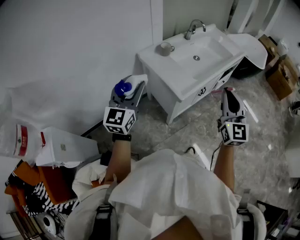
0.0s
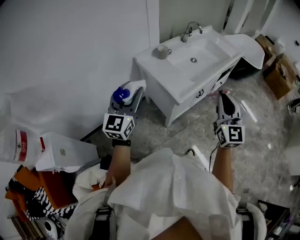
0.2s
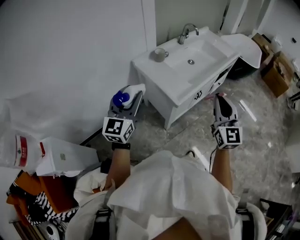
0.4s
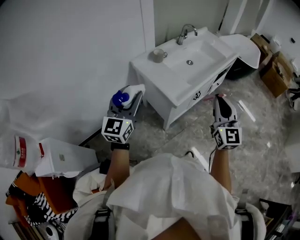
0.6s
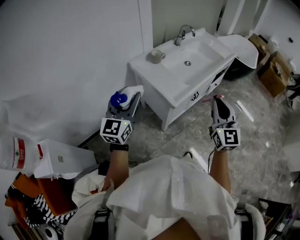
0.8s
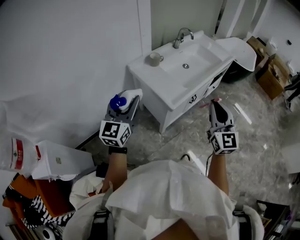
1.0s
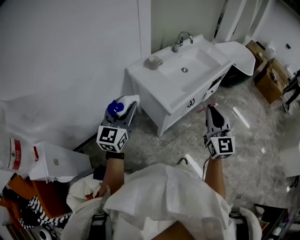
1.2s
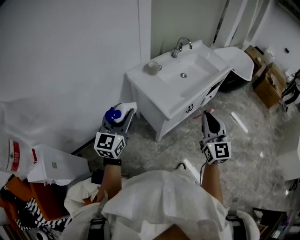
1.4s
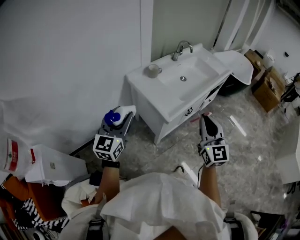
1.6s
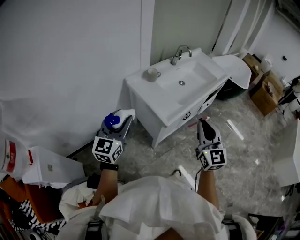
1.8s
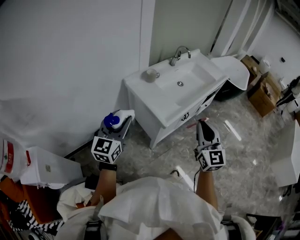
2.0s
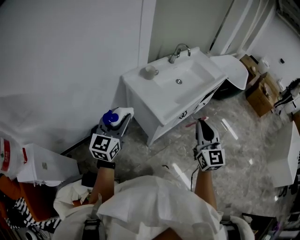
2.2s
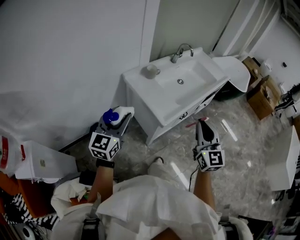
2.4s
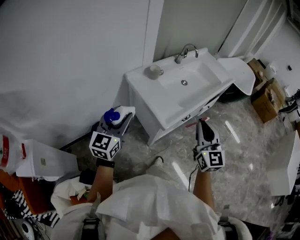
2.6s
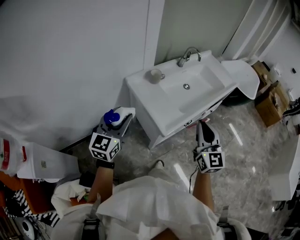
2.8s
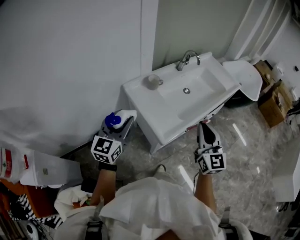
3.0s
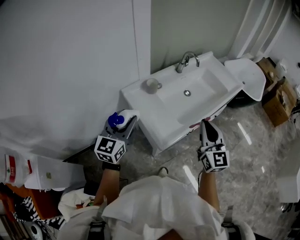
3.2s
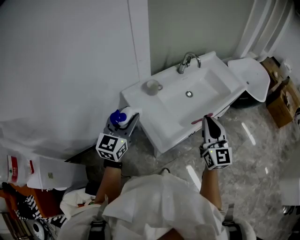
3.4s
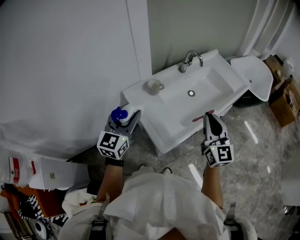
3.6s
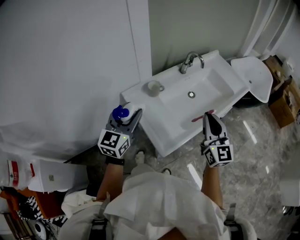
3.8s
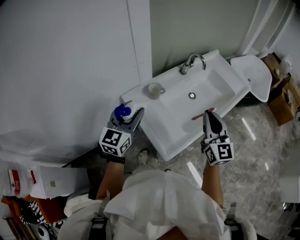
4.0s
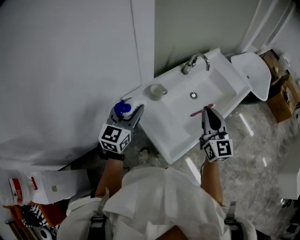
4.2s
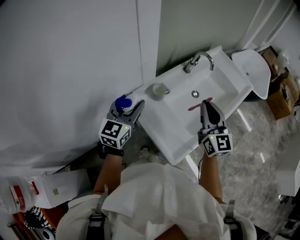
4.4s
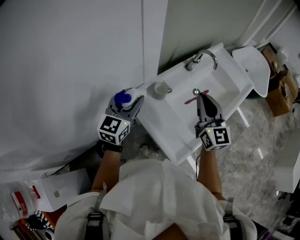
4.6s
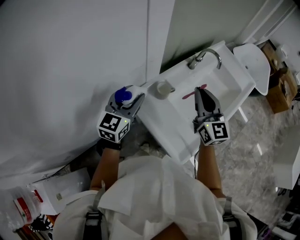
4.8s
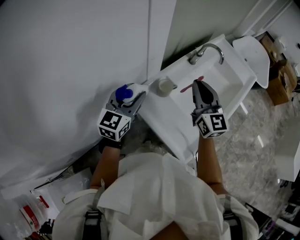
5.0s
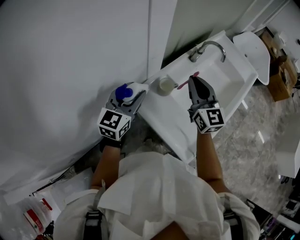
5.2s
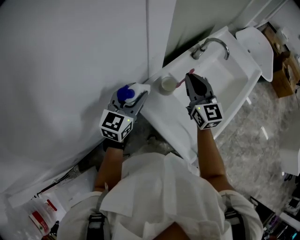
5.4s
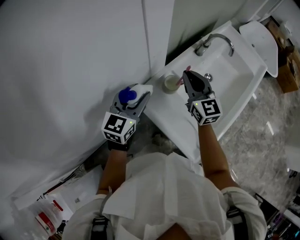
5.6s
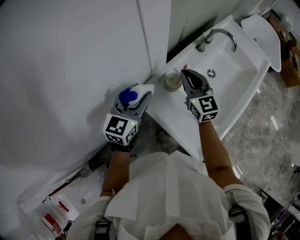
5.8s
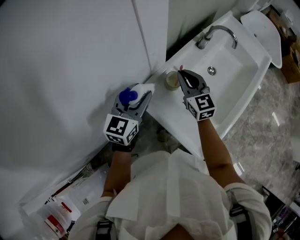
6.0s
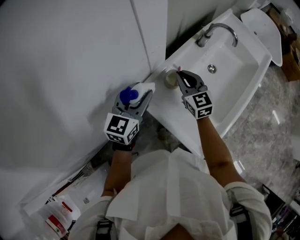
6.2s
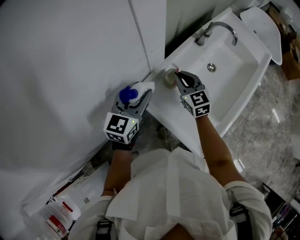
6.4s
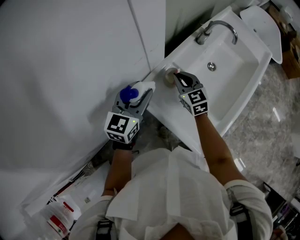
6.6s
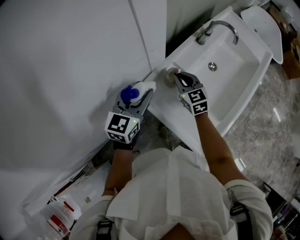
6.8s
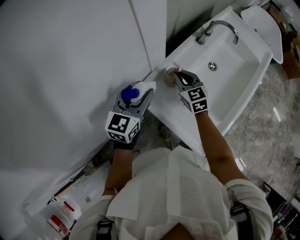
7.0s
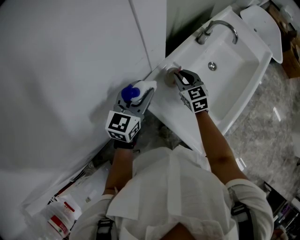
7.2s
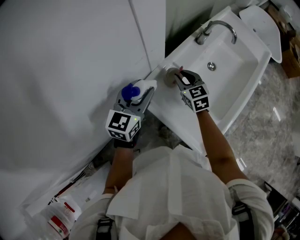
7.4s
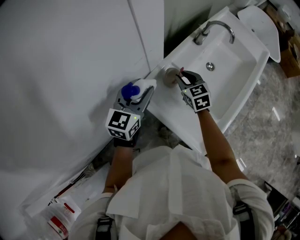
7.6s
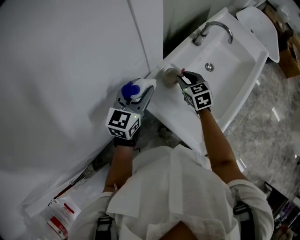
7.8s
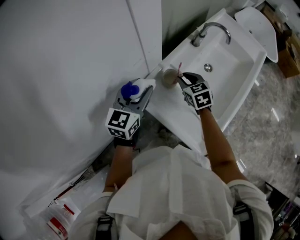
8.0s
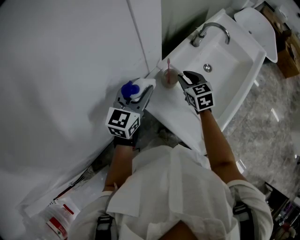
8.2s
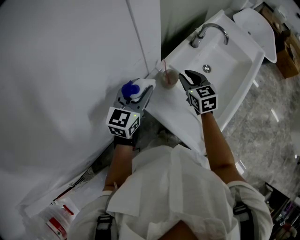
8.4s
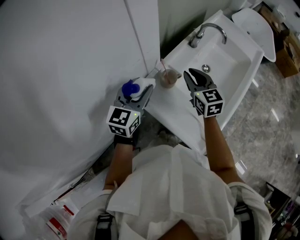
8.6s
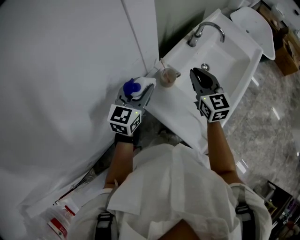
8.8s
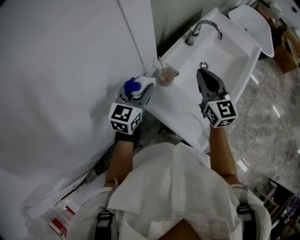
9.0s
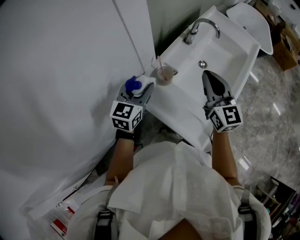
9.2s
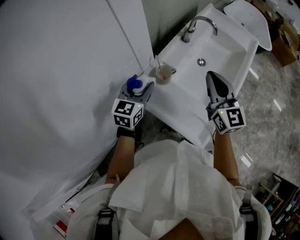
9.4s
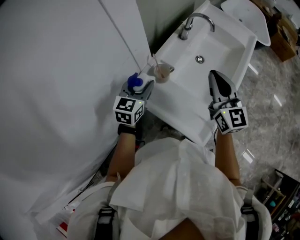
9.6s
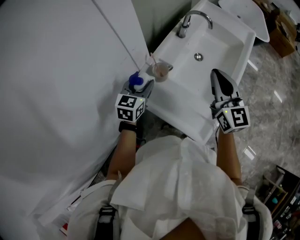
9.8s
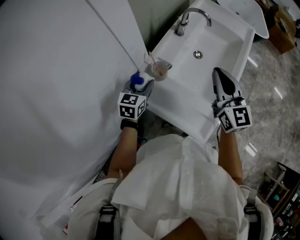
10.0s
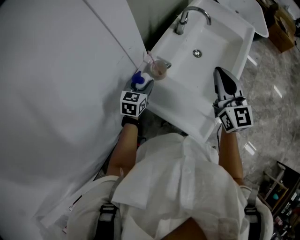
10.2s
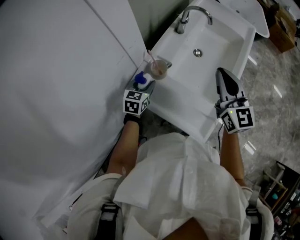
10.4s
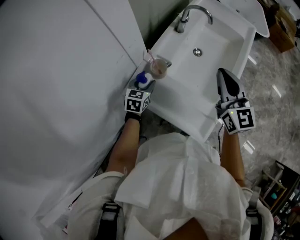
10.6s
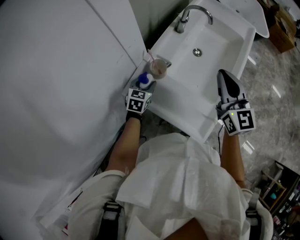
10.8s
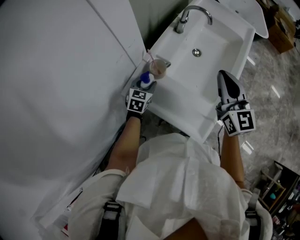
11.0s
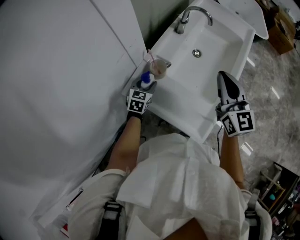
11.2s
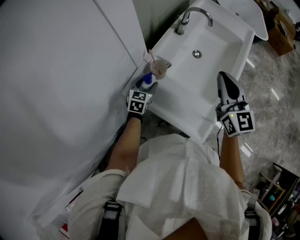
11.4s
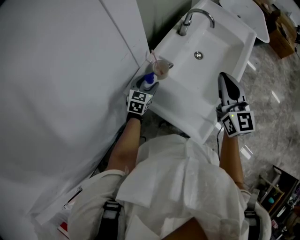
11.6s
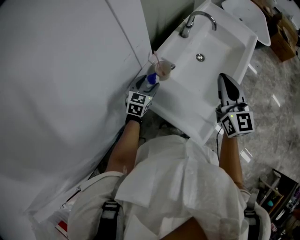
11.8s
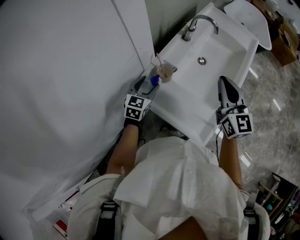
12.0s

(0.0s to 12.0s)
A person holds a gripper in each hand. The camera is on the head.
0.0s - 1.6s: The grippers move only a little.
1.6s - 3.0s: The two grippers go some 15 cm forward.
3.0s - 4.4s: The two grippers go about 25 cm forward.
4.4s - 6.0s: The left gripper travels forward, downward and to the left by roughly 15 cm, while the right gripper goes approximately 30 cm to the left, forward and downward.
6.0s - 7.6s: The right gripper is displaced downward by about 5 cm, and swivels about 20 degrees.
7.6s - 9.0s: The right gripper moves upward and to the right, roughly 20 cm, and rotates some 30 degrees.
9.0s - 10.4s: The left gripper goes about 15 cm downward; the right gripper moves to the right, roughly 10 cm.
10.4s - 12.0s: There are only small adjustments of the grippers.

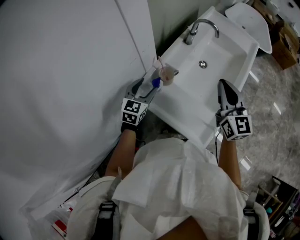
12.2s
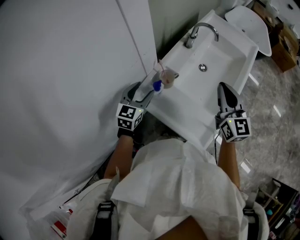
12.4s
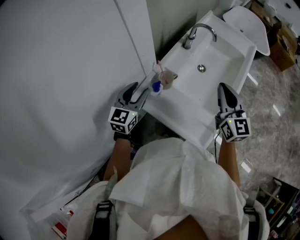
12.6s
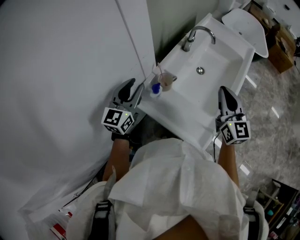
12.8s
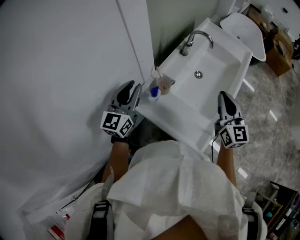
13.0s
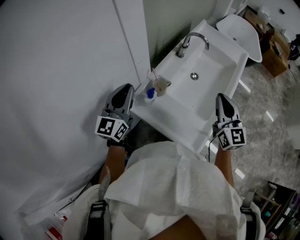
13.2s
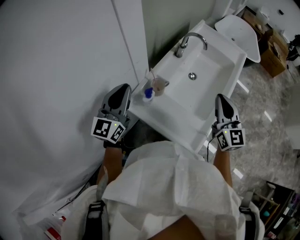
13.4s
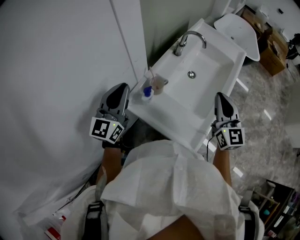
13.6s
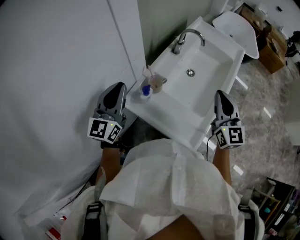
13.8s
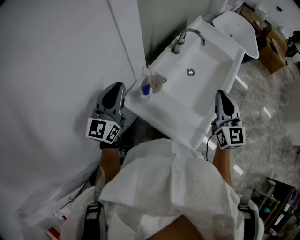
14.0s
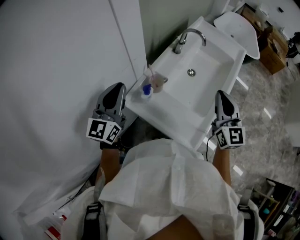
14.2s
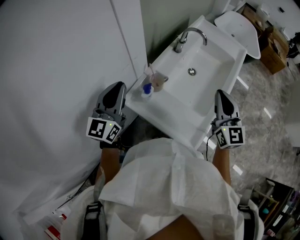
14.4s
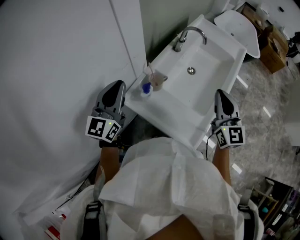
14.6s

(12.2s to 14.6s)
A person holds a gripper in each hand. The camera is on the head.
12.2s - 13.4s: The left gripper moves upward, approximately 20 cm, tips its fingers upward by some 30 degrees, and closes up.
13.4s - 14.6s: The two grippers keep their place.

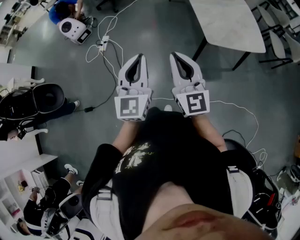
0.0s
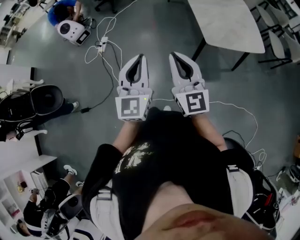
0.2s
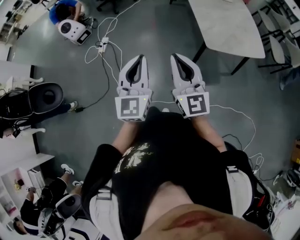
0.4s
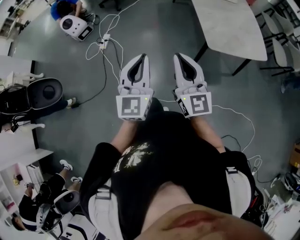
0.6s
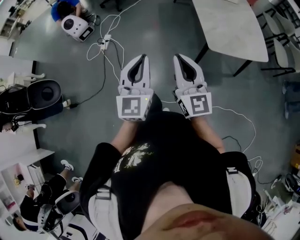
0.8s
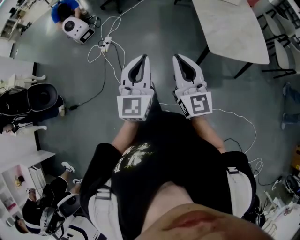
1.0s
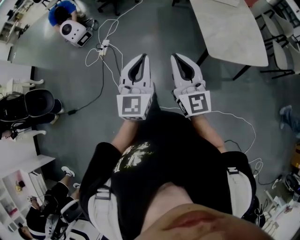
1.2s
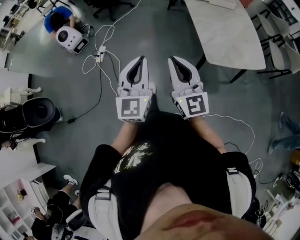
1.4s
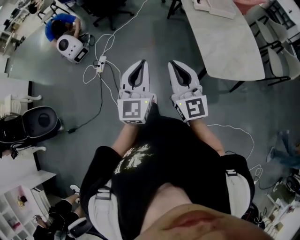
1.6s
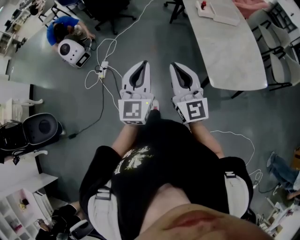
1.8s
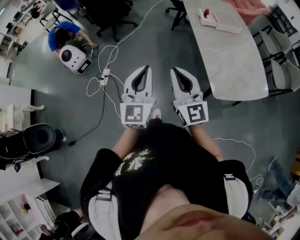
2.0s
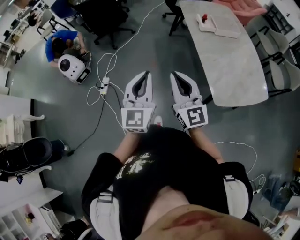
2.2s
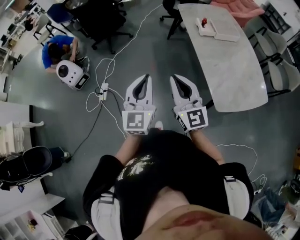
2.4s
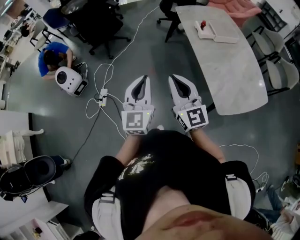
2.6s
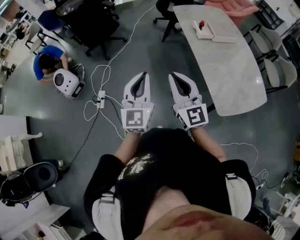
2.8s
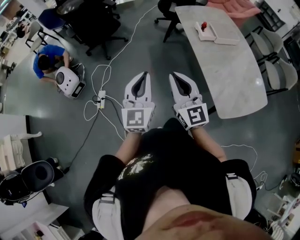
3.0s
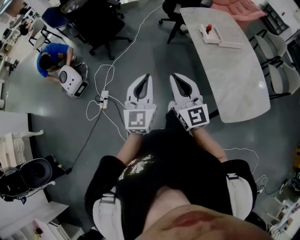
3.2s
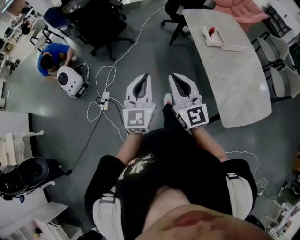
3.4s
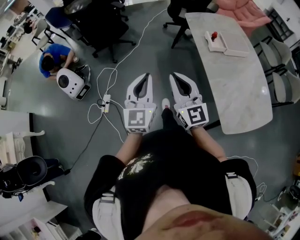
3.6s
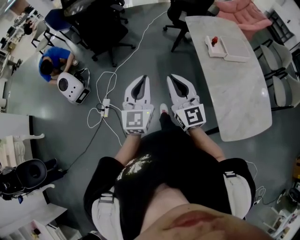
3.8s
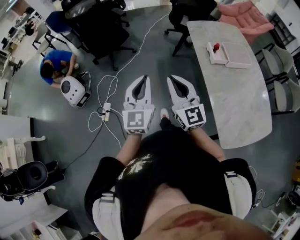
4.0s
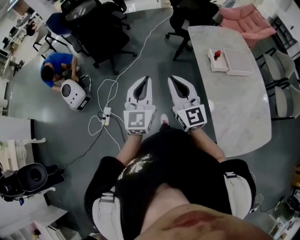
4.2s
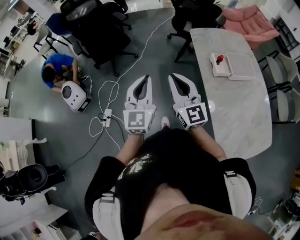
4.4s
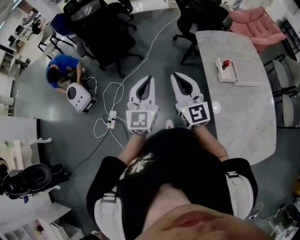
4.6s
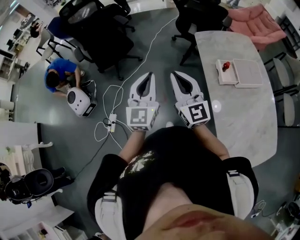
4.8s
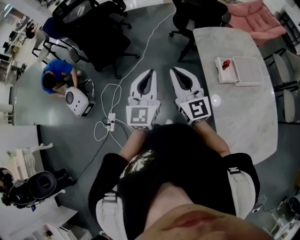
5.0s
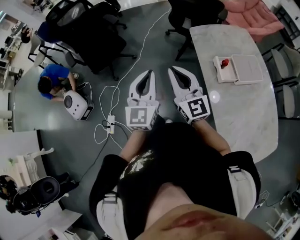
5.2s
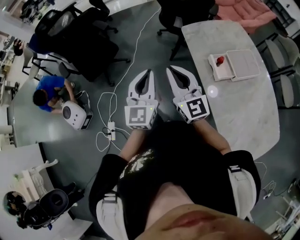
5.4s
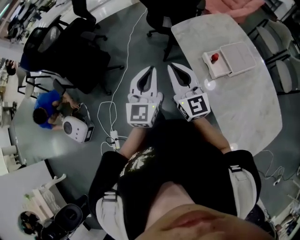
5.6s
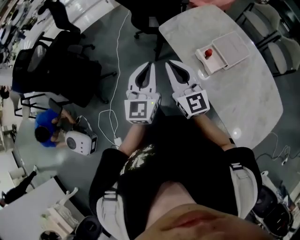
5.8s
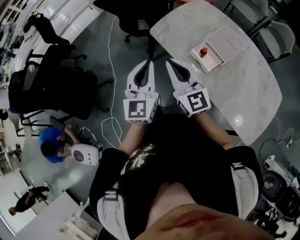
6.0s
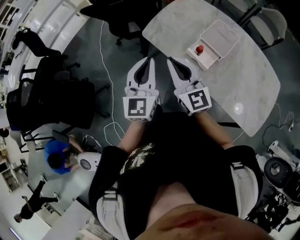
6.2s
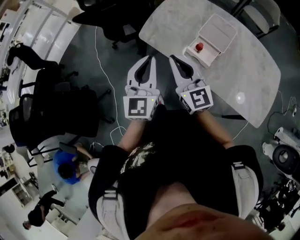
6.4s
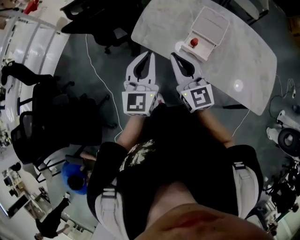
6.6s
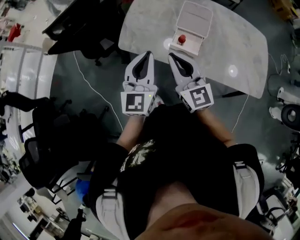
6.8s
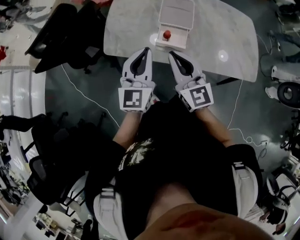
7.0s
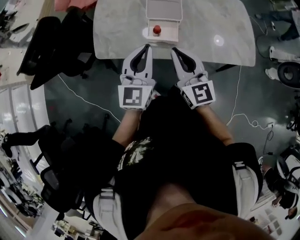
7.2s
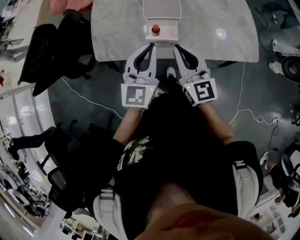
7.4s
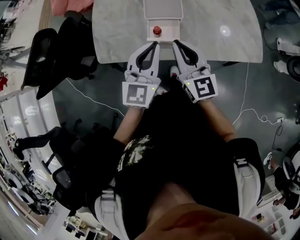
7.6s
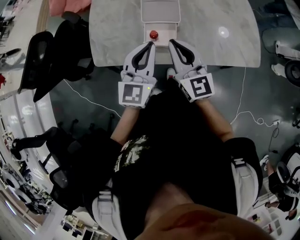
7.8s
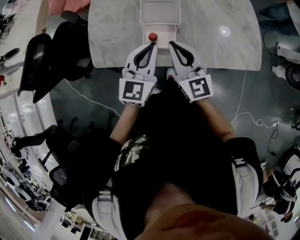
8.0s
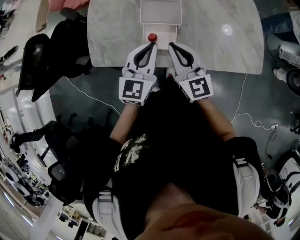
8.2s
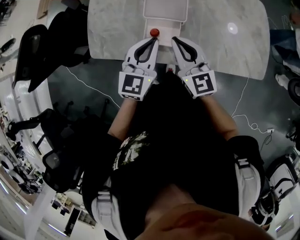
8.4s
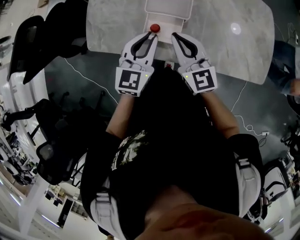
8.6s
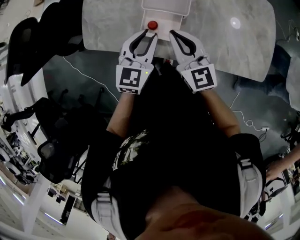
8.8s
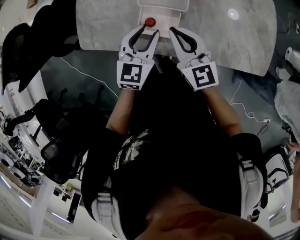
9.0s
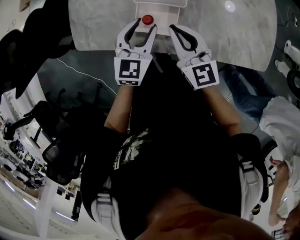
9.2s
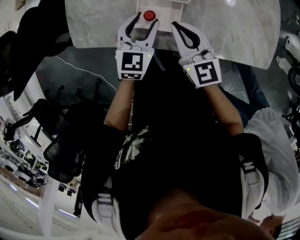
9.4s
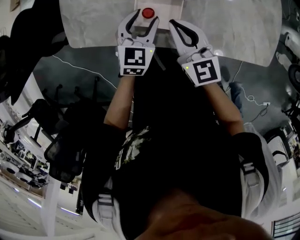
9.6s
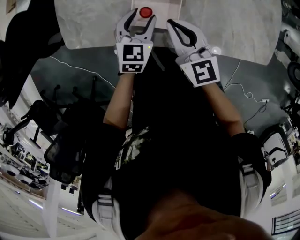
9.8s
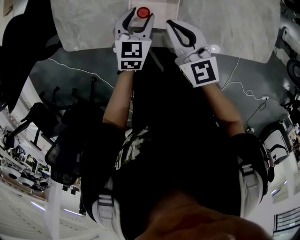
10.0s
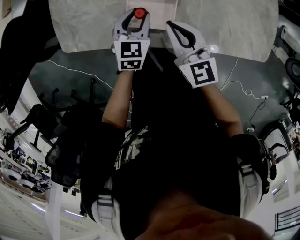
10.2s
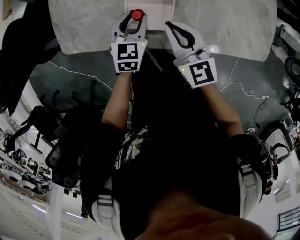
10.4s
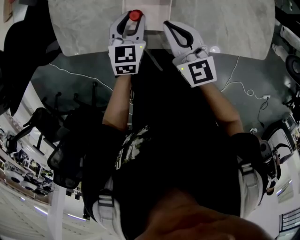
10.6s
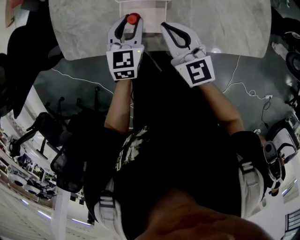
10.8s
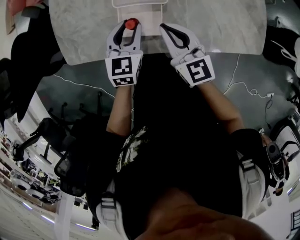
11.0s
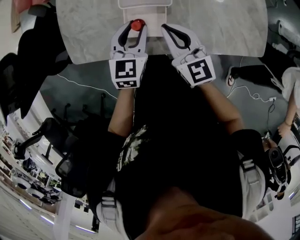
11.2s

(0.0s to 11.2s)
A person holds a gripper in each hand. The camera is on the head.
0.0s - 1.6s: Both grippers move forward, some 20 cm.
1.6s - 3.2s: Both grippers move forward, some 35 cm.
3.2s - 4.8s: Both grippers move forward, some 40 cm.
4.8s - 6.4s: The right gripper changes place by roughly 40 cm, and changes its angle by some 50 degrees. Meanwhile the left gripper changes place by about 40 cm, and swivels about 50 degrees.
6.4s - 8.0s: The right gripper changes place by approximately 25 cm, and turns by roughly 40 degrees. The left gripper shifts by about 30 cm, and rotates approximately 50 degrees.
8.0s - 9.6s: Both grippers move downward and forward, about 25 cm. The left gripper swivels approximately 20 degrees, and opens its fingers.
9.6s - 11.2s: The left gripper moves upward, approximately 5 cm; the right gripper moves some 5 cm.
